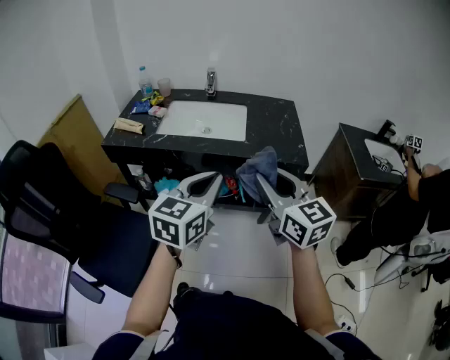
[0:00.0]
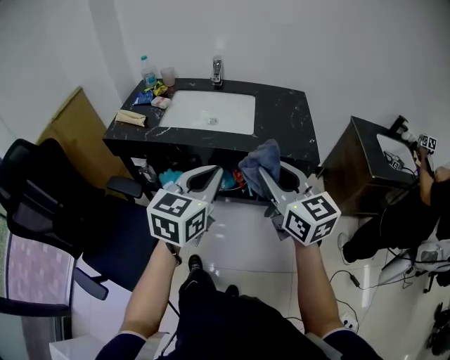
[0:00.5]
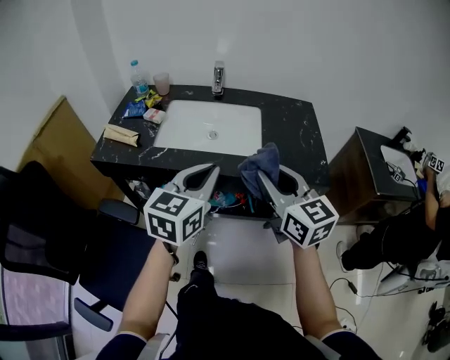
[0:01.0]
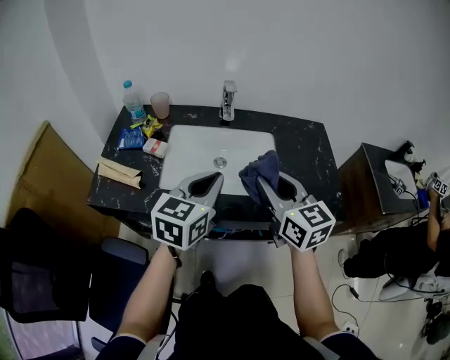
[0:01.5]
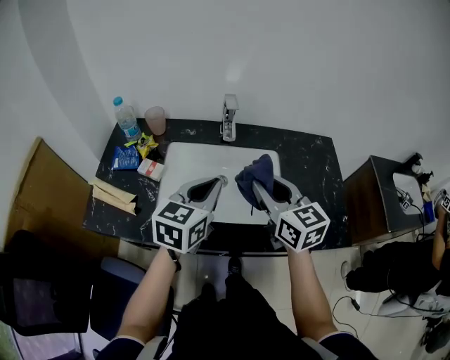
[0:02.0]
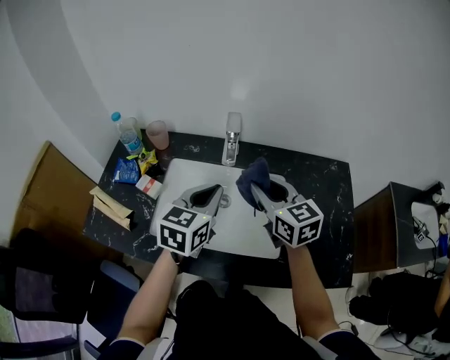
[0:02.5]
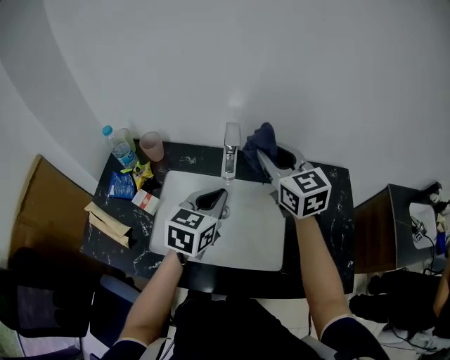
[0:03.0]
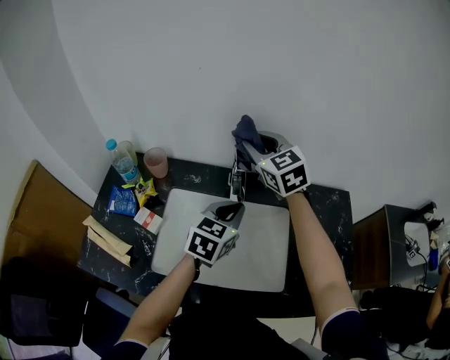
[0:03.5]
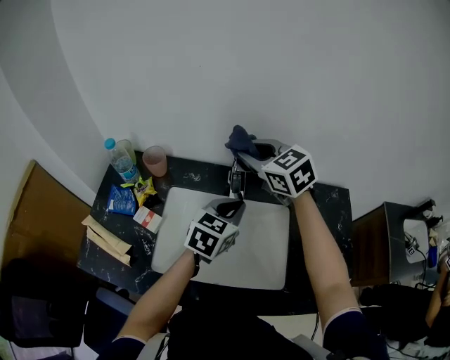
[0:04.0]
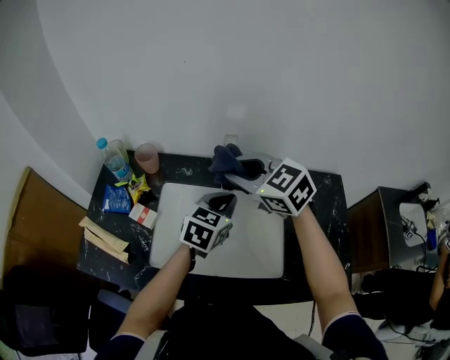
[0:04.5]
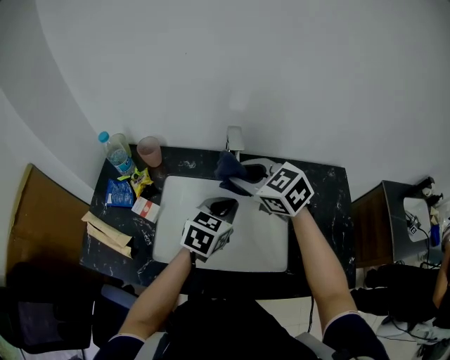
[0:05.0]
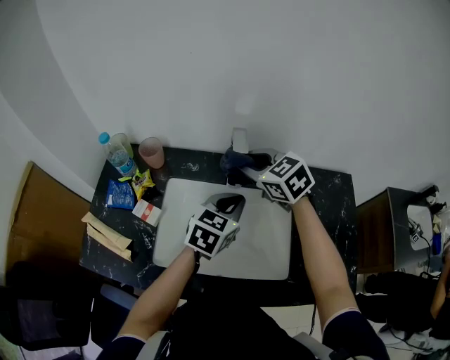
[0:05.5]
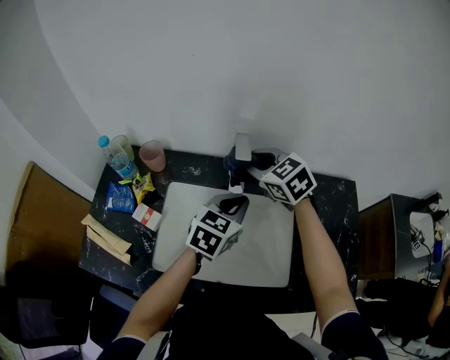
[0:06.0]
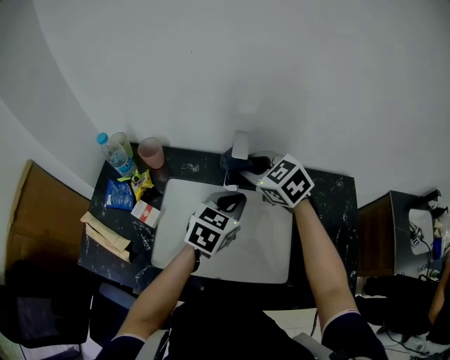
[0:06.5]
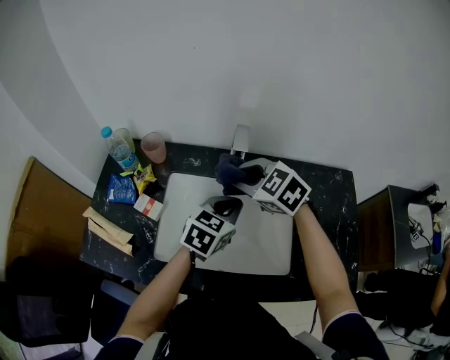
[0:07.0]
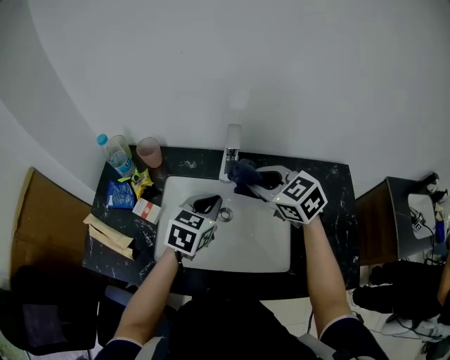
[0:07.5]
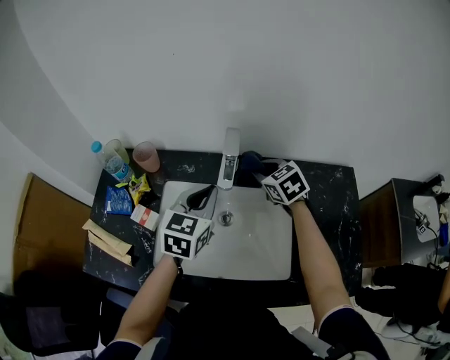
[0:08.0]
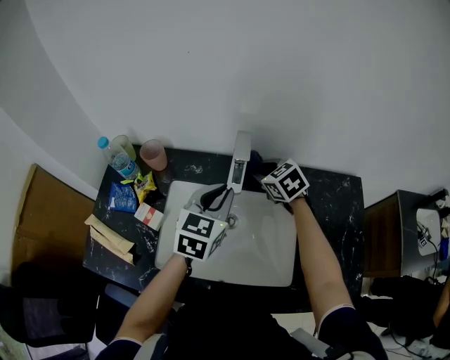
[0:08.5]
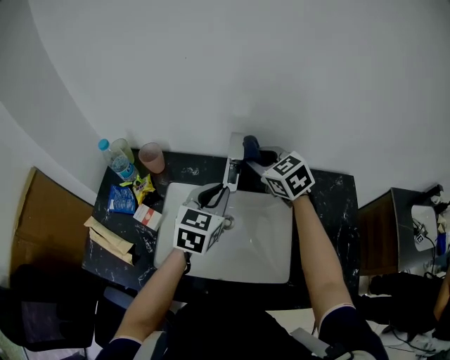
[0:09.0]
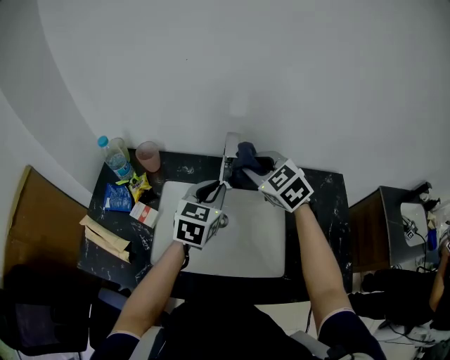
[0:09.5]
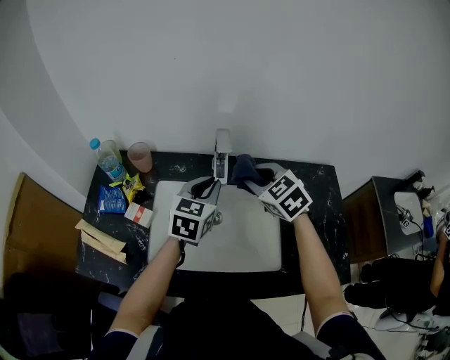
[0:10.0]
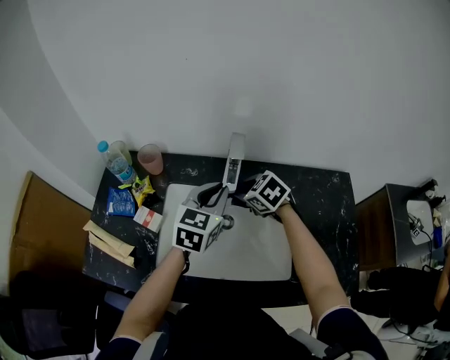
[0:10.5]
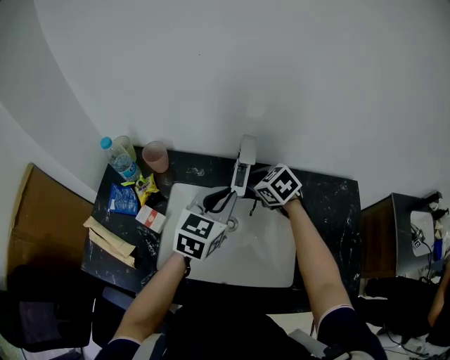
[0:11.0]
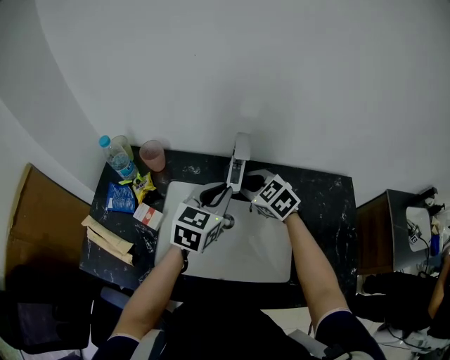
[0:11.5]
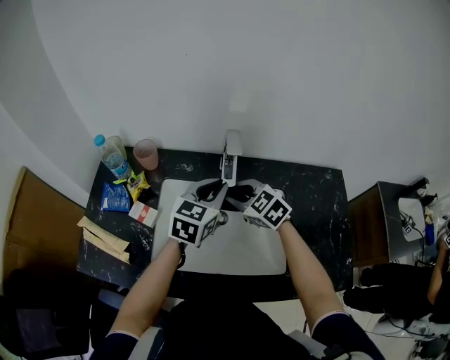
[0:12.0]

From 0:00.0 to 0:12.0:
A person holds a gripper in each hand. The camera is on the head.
From 0:00.0 to 0:02.0: The pair of grippers is taken forward, approximately 40 cm.
From 0:02.0 to 0:04.0: The right gripper is displaced forward by some 25 cm, and swivels approximately 30 degrees; the left gripper goes about 15 cm forward and downward.
From 0:04.0 to 0:06.0: The right gripper moves downward, roughly 5 cm, and goes backward and returns, about 10 cm each way.
From 0:06.0 to 0:08.0: The left gripper travels to the left by approximately 5 cm; the right gripper is displaced downward and to the right by approximately 10 cm.
From 0:08.0 to 0:10.0: The right gripper shifts about 10 cm upward and backward.
From 0:10.0 to 0:12.0: The right gripper travels downward and to the left by about 10 cm.

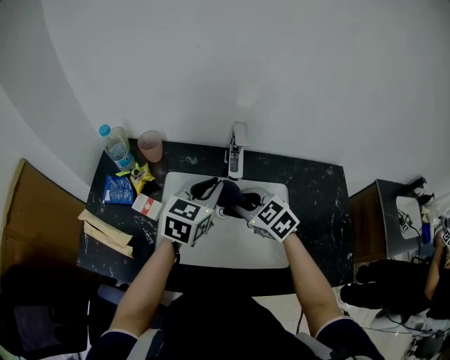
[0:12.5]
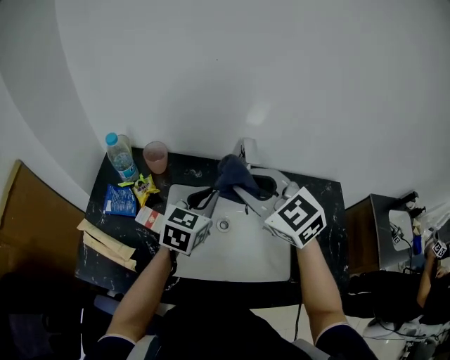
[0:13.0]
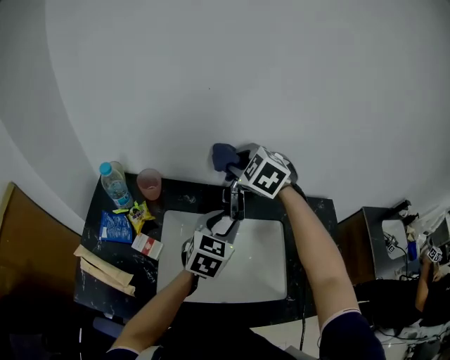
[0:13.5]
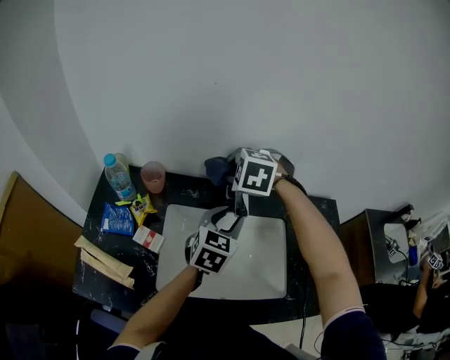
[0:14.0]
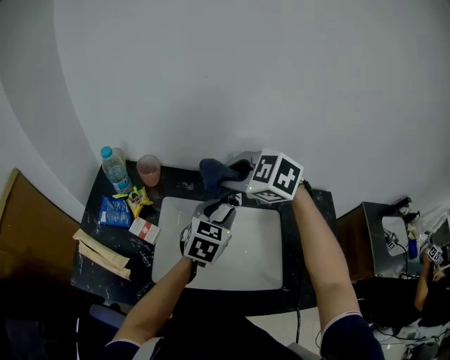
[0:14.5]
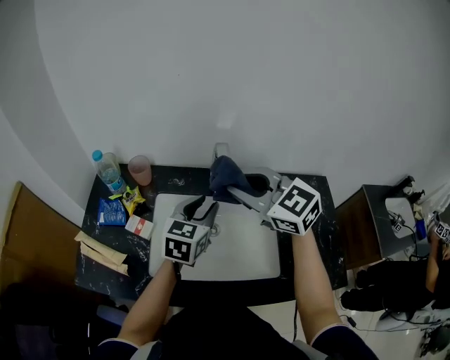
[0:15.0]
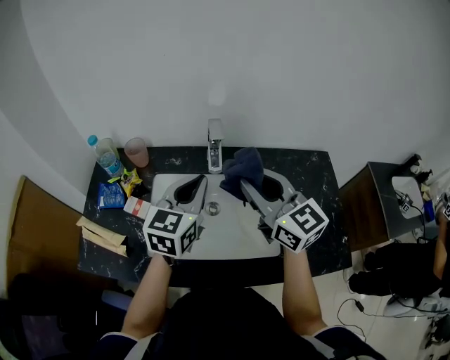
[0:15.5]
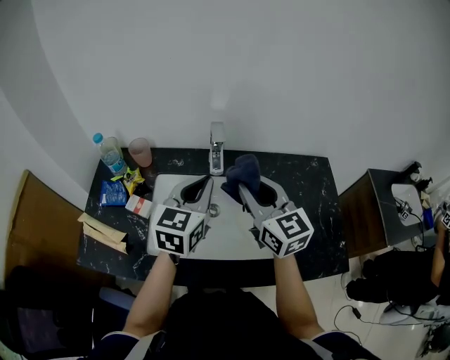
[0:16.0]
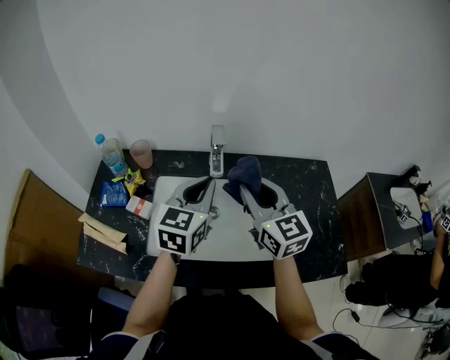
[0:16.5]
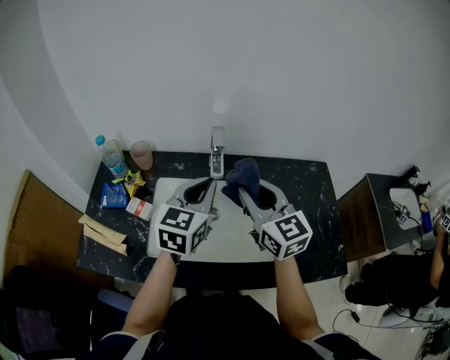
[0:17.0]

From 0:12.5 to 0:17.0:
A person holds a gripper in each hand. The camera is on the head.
From 0:12.5 to 0:14.5: The left gripper opens, while the right gripper goes about 15 cm upward and forward, and turns by roughly 20 degrees.
From 0:14.5 to 0:17.0: The right gripper travels backward and to the right by roughly 15 cm, and tips its fingers upward by approximately 50 degrees. The left gripper moves upward and backward, about 10 cm, and closes its fingers.

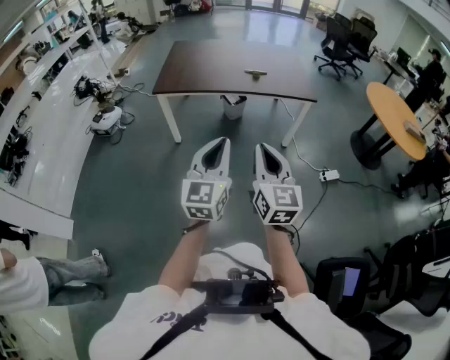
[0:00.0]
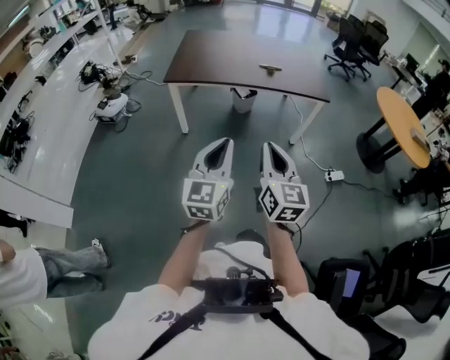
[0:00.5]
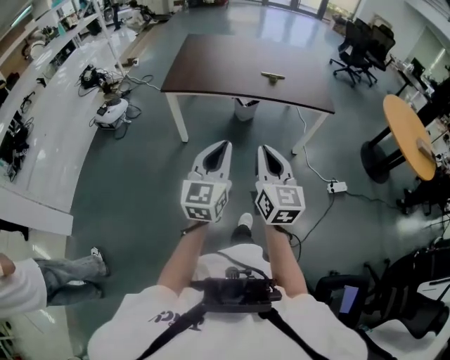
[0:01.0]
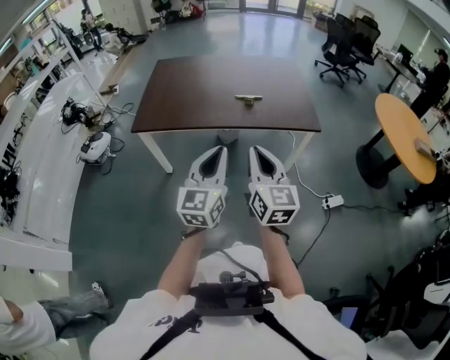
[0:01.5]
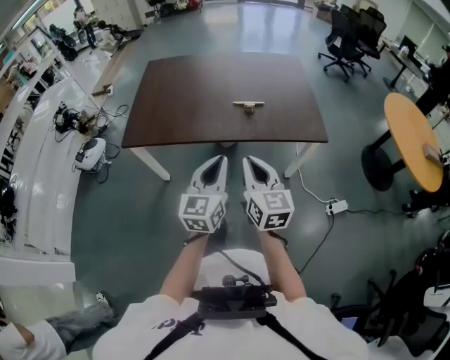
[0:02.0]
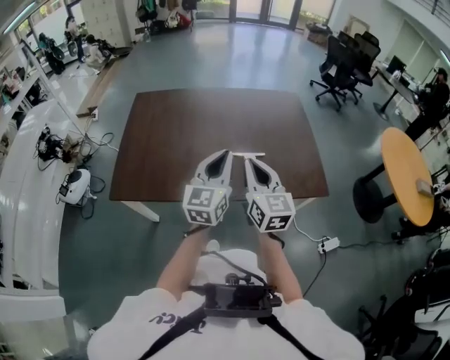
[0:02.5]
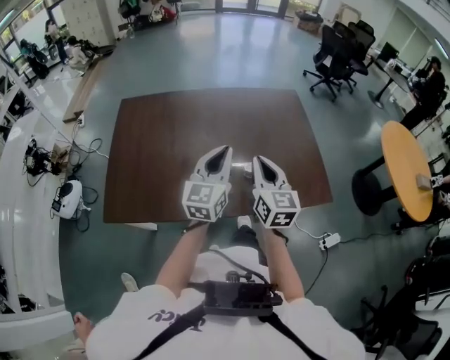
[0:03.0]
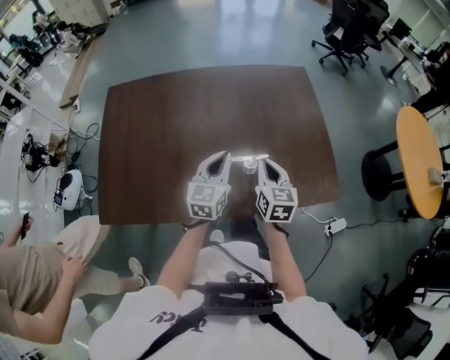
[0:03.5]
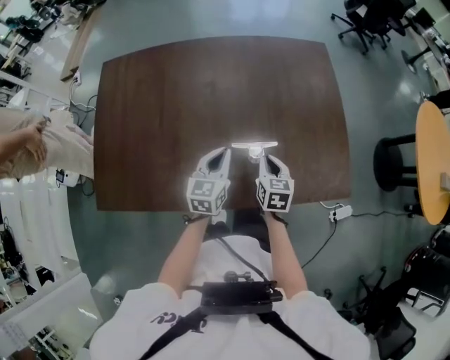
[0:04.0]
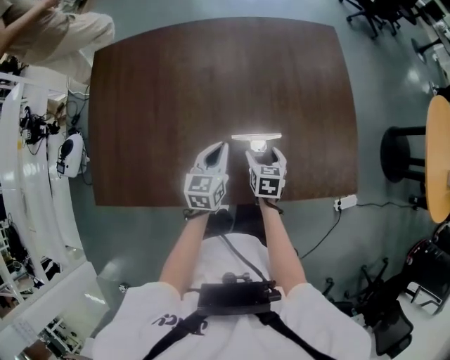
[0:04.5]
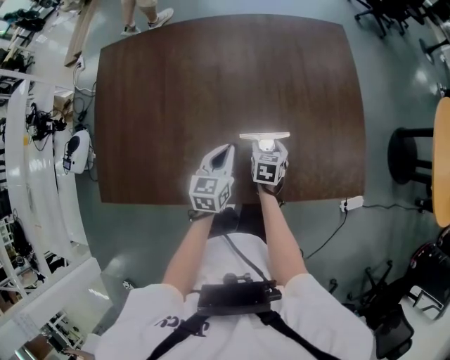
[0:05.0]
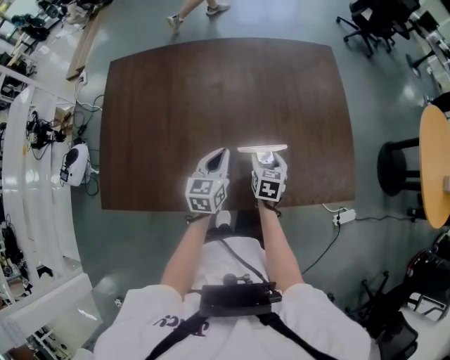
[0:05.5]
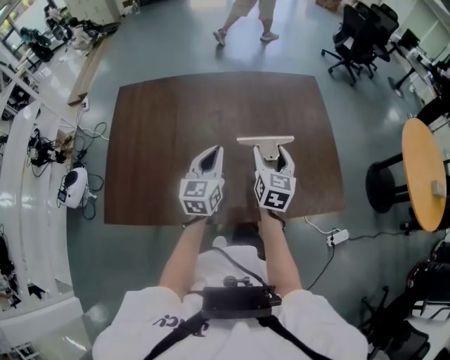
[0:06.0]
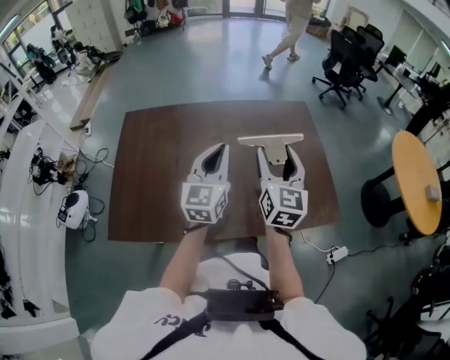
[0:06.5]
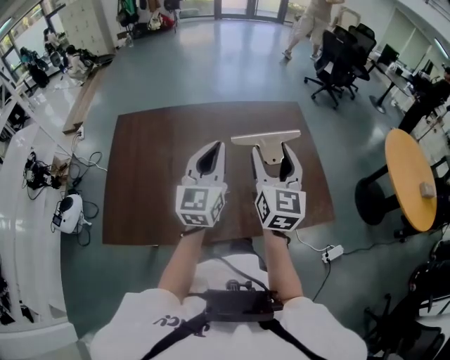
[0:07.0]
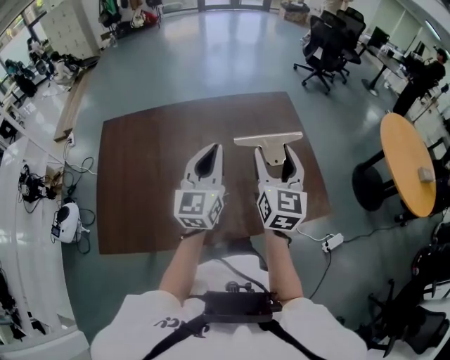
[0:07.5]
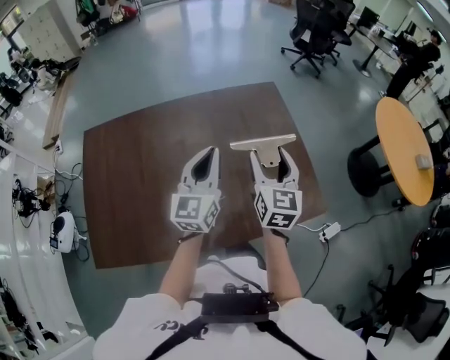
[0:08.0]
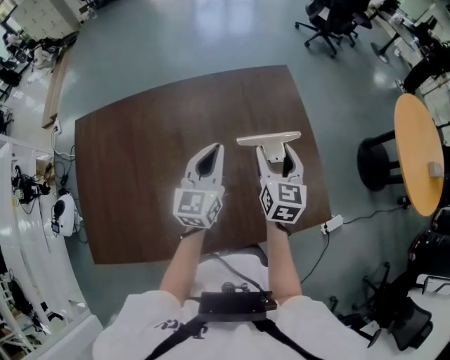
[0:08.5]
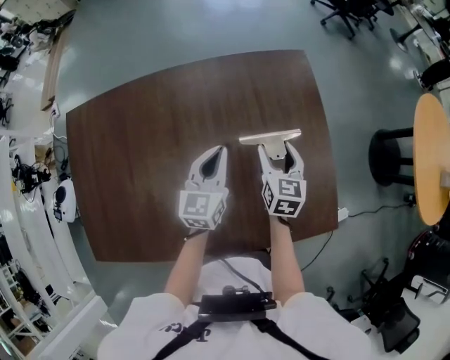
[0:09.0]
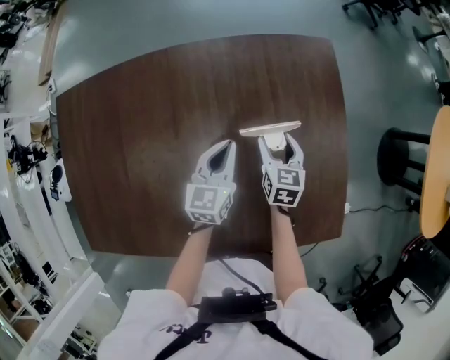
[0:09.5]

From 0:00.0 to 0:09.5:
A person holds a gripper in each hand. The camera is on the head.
From 0:00.0 to 0:02.0: The pair of grippers is taken forward, approximately 50 cm.
From 0:02.0 to 0:04.0: The pair of grippers is taken forward, about 50 cm. Both grippers move downward, some 25 cm. The left gripper swivels about 20 degrees. Meanwhile the right gripper angles its fingers downward, by some 30 degrees.
From 0:04.0 to 0:05.5: The right gripper travels downward by roughly 5 cm, and opens its fingers.
From 0:05.5 to 0:07.5: The grippers both shift upward by some 30 cm. The left gripper turns by approximately 30 degrees. Meanwhile the right gripper angles its fingers upward, by about 40 degrees.
From 0:07.5 to 0:09.5: Both grippers move downward and forward, about 40 cm. The right gripper tips its fingers downward by approximately 40 degrees. The left gripper swivels roughly 30 degrees.
